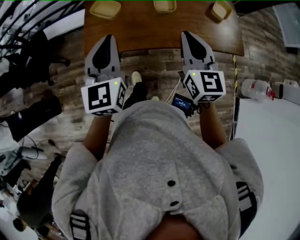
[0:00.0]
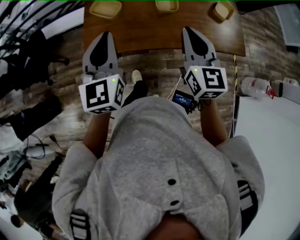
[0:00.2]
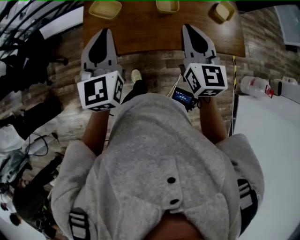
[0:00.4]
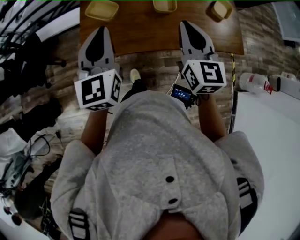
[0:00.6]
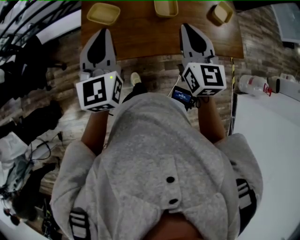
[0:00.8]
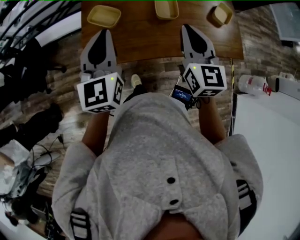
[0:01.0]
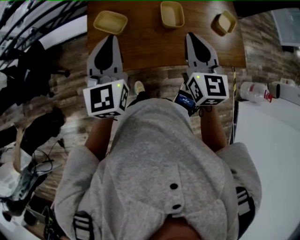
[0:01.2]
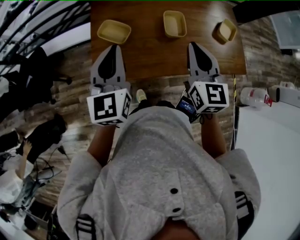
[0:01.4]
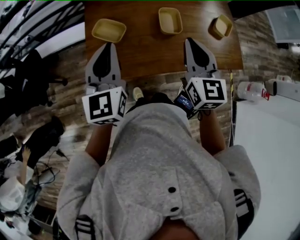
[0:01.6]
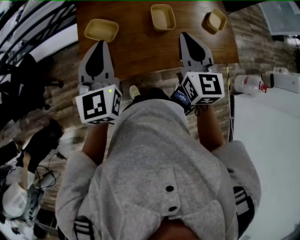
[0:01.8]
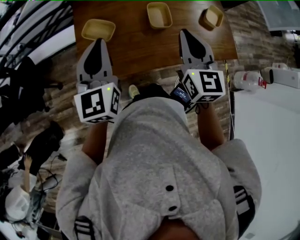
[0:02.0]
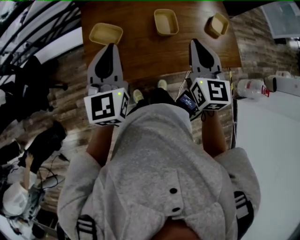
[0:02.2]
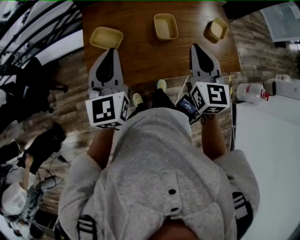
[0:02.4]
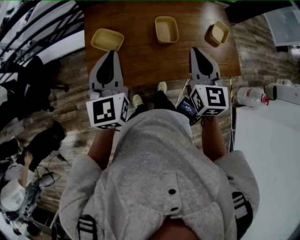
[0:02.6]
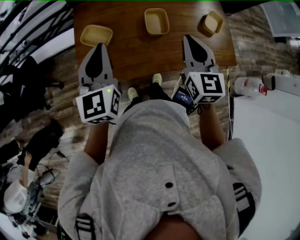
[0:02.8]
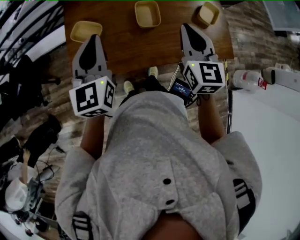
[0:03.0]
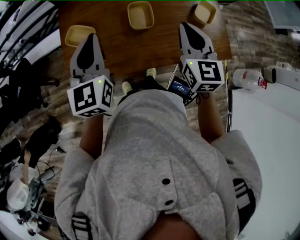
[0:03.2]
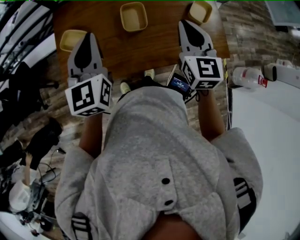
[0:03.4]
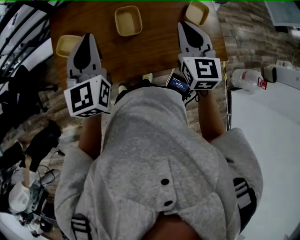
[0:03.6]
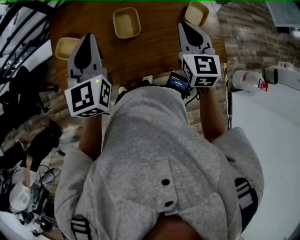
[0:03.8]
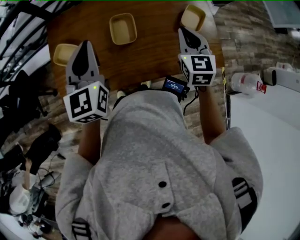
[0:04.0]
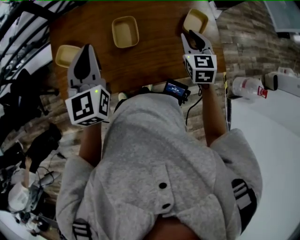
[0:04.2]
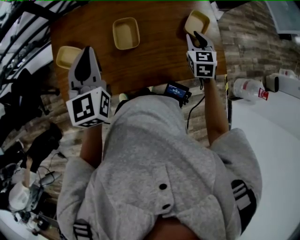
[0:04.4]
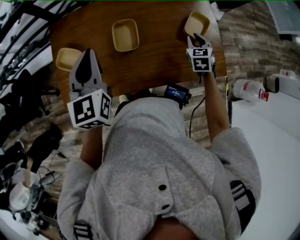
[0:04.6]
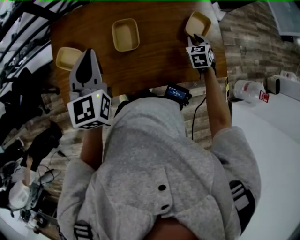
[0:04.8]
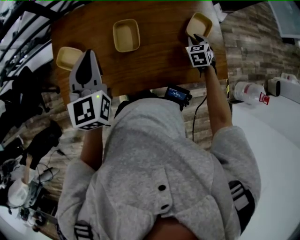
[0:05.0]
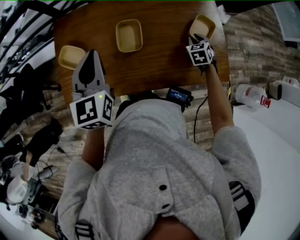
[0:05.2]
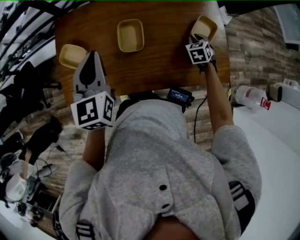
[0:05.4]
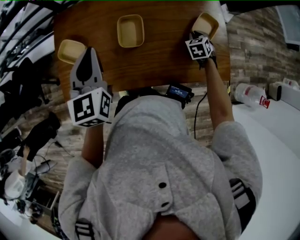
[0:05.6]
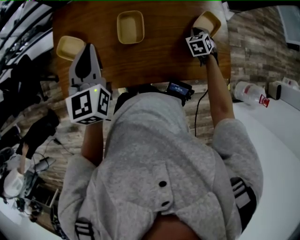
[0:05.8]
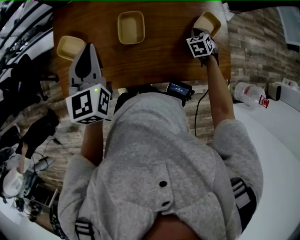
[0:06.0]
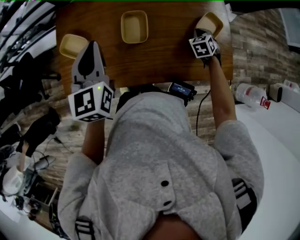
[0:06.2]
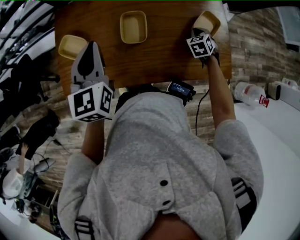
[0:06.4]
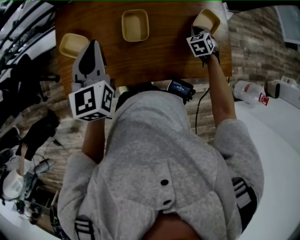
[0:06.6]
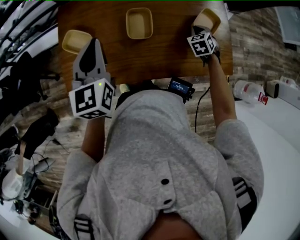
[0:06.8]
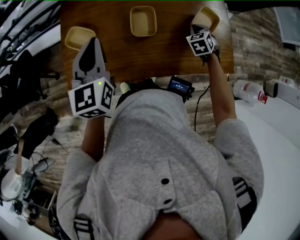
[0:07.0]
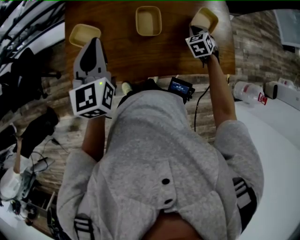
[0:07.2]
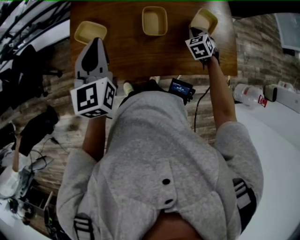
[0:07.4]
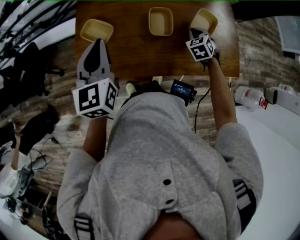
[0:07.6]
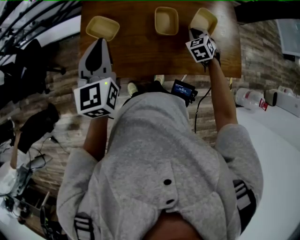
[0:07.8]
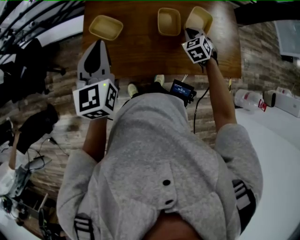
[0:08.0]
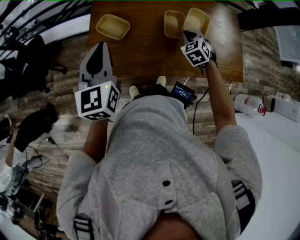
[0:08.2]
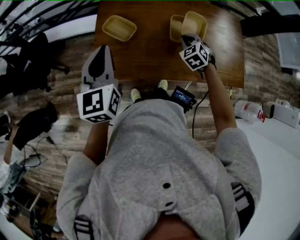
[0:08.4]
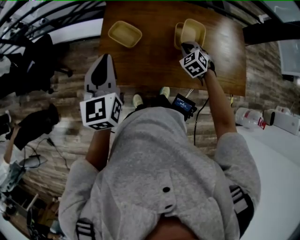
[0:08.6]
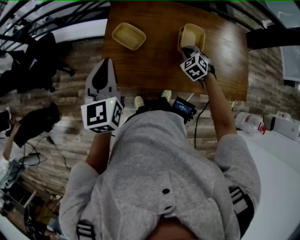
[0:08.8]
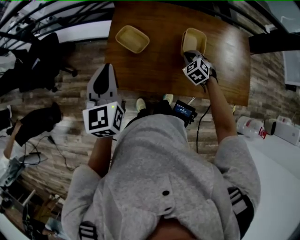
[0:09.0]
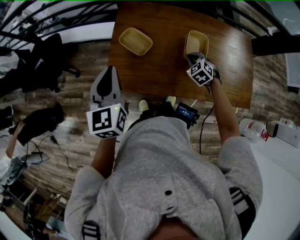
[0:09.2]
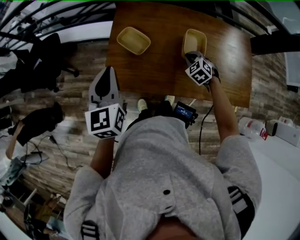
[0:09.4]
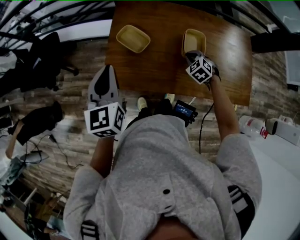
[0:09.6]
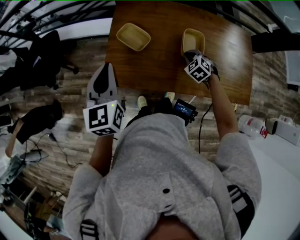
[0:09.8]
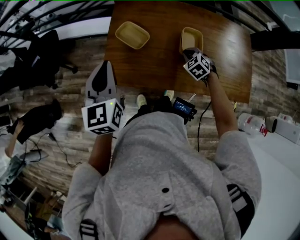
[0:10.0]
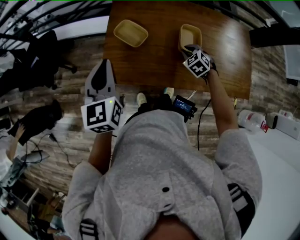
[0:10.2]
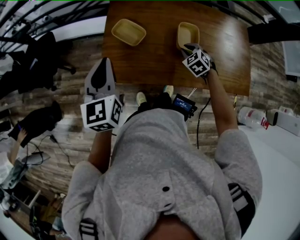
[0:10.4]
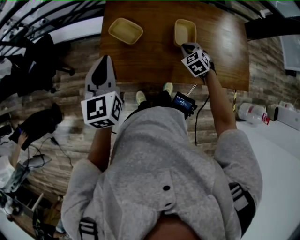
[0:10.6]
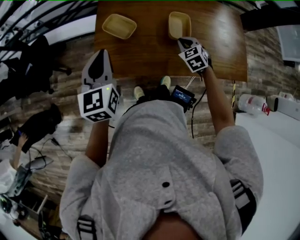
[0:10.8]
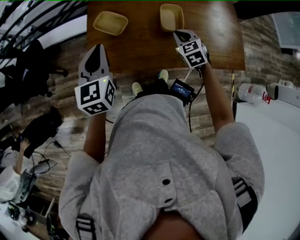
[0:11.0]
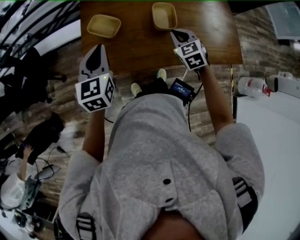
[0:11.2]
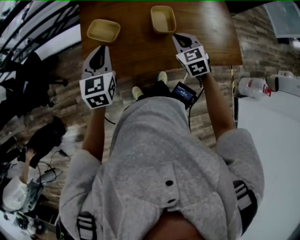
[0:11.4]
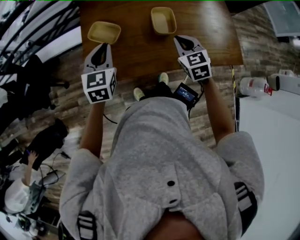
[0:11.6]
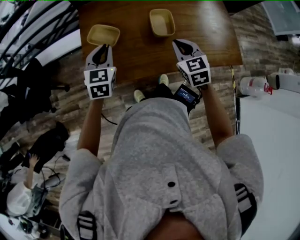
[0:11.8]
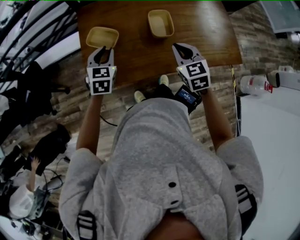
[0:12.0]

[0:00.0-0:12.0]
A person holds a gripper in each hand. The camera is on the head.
0:00.0 to 0:01.6: The grippers both shift forward and to the left by approximately 15 cm.
0:01.6 to 0:03.0: Both grippers travel together to the right, some 10 cm.
0:03.0 to 0:04.4: The right gripper is displaced to the right, downward and forward by roughly 30 cm, turns by approximately 20 degrees, and opens; the left gripper goes roughly 15 cm to the right and forward.
0:04.4 to 0:06.0: The right gripper shifts roughly 15 cm downward and forward, and rotates some 30 degrees.
0:06.0 to 0:07.6: The left gripper is displaced to the left and backward by some 15 cm; the right gripper heads to the left and upward, covering some 15 cm.
0:07.6 to 0:09.0: The grippers both shift to the left by roughly 20 cm. The right gripper swivels roughly 20 degrees.
0:09.0 to 0:10.4: The grippers stay close to where they were, moving slightly.
0:10.4 to 0:12.0: The left gripper is displaced downward, forward and to the right by some 20 cm, and turns by about 40 degrees; the right gripper is displaced upward and backward by about 15 cm, and swivels about 40 degrees.

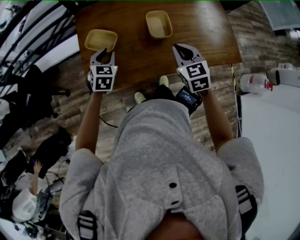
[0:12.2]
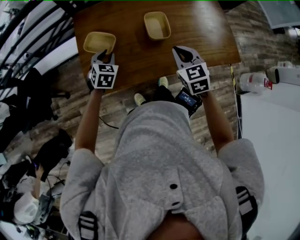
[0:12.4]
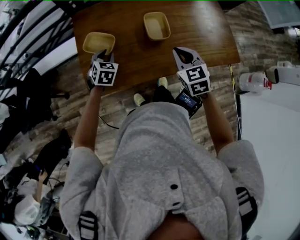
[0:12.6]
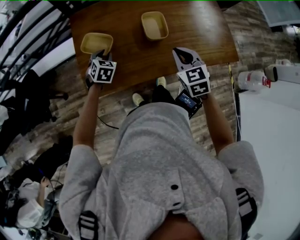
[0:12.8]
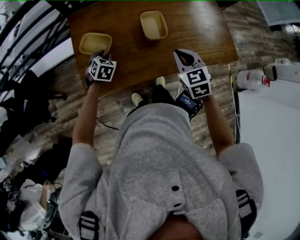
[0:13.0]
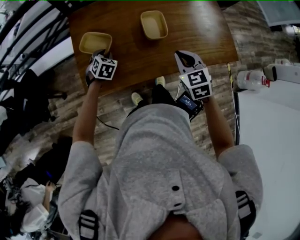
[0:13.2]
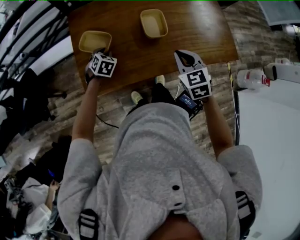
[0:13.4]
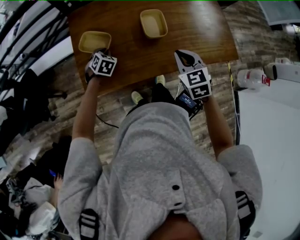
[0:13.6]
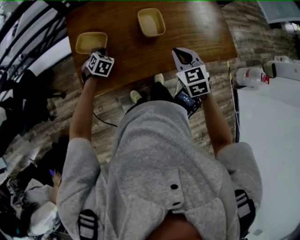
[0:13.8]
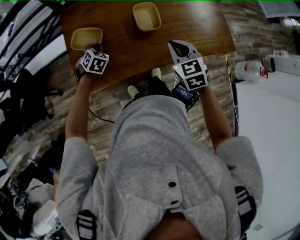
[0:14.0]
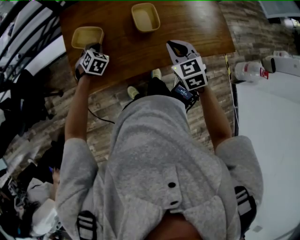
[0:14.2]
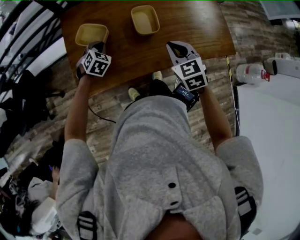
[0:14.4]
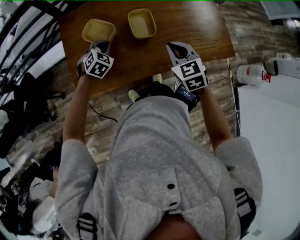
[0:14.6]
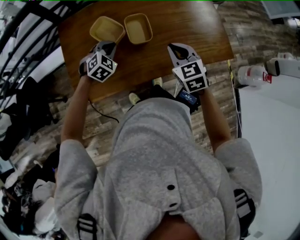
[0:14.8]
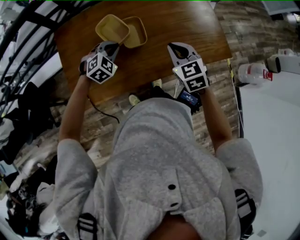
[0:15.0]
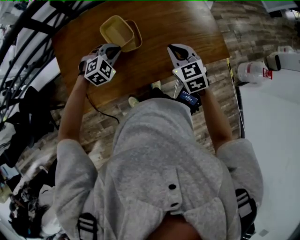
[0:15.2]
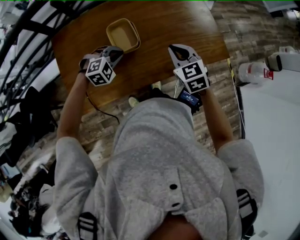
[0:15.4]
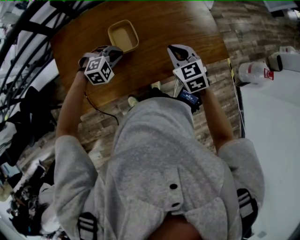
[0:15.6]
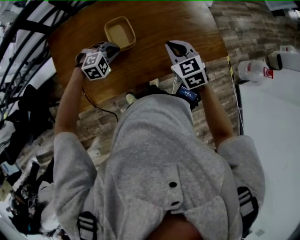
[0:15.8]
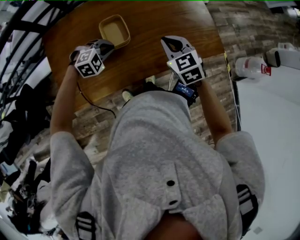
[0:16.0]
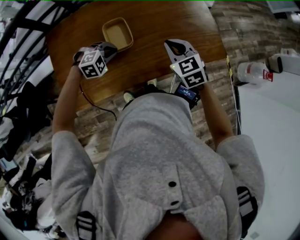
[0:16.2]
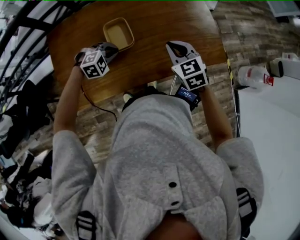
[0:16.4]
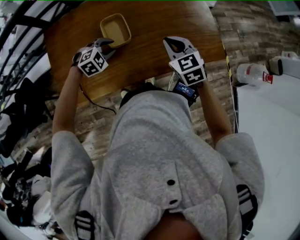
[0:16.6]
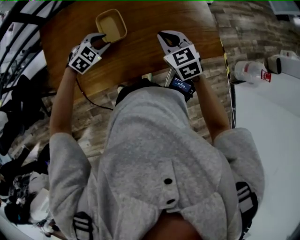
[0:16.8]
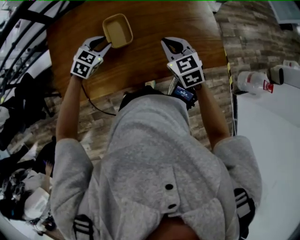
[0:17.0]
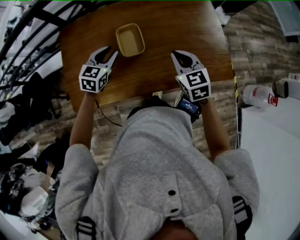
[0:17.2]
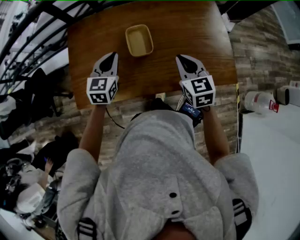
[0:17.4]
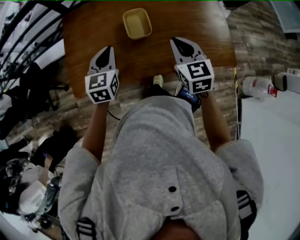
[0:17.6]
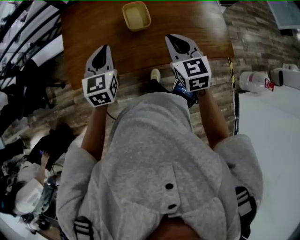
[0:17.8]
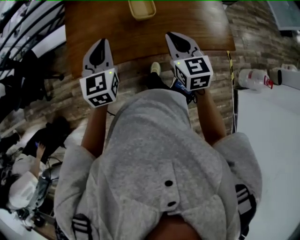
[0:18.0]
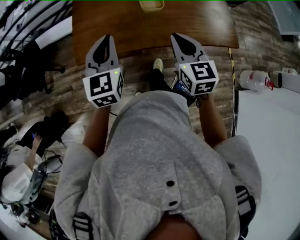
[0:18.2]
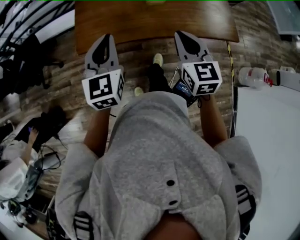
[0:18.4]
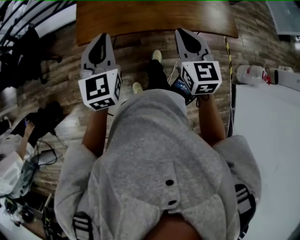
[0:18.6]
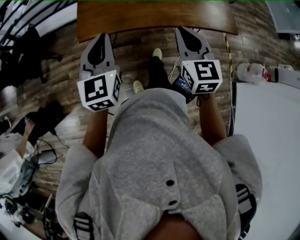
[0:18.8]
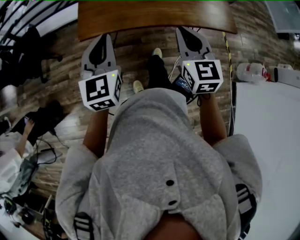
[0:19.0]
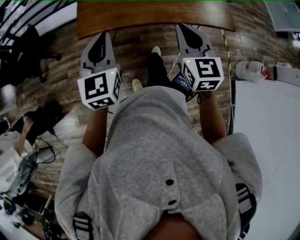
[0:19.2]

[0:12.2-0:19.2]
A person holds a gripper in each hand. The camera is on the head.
0:12.2 to 0:13.6: The left gripper travels downward by some 10 cm.
0:13.6 to 0:15.0: The right gripper heads to the right and forward, covering approximately 10 cm; the left gripper moves to the right and upward, some 20 cm, and swivels approximately 40 degrees.
0:15.0 to 0:16.4: The right gripper goes roughly 10 cm to the right and forward, while the left gripper travels to the right by some 5 cm, and turns by about 20 degrees.
0:16.4 to 0:17.8: The left gripper is displaced upward by roughly 15 cm, tips its fingers upward by about 40 degrees, and opens, then closes once more; the right gripper moves approximately 15 cm.
0:17.8 to 0:19.2: Both grippers move backward and to the left, some 25 cm.

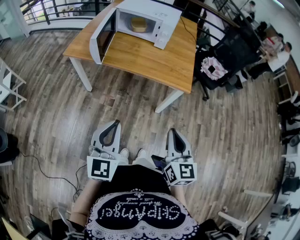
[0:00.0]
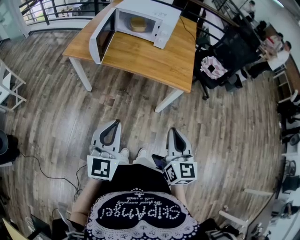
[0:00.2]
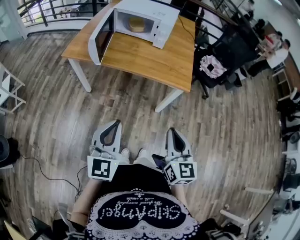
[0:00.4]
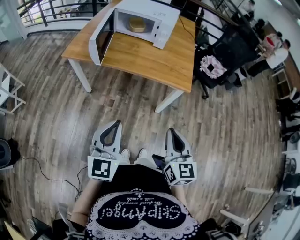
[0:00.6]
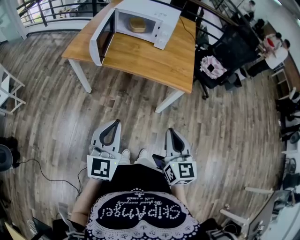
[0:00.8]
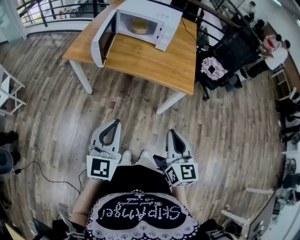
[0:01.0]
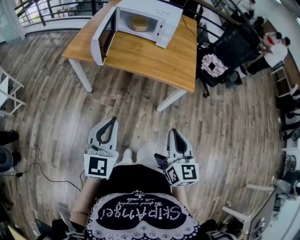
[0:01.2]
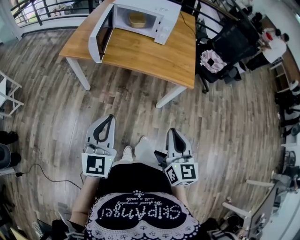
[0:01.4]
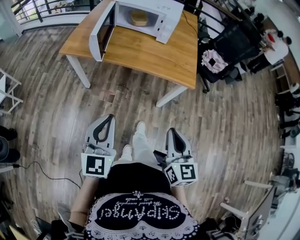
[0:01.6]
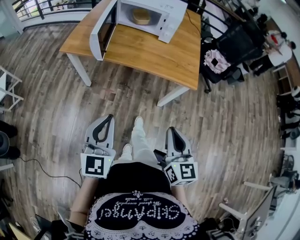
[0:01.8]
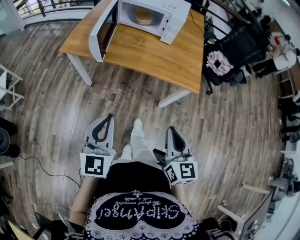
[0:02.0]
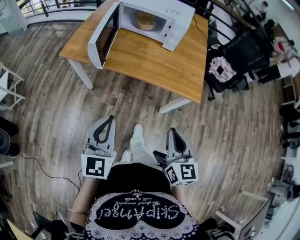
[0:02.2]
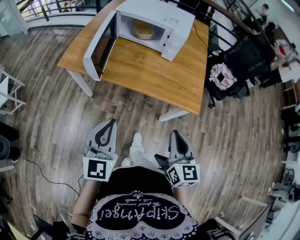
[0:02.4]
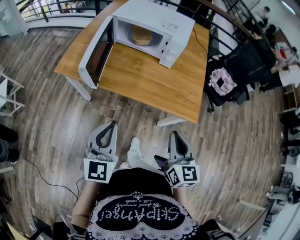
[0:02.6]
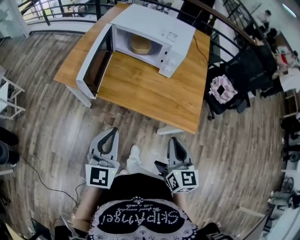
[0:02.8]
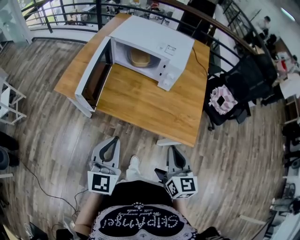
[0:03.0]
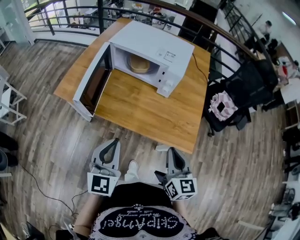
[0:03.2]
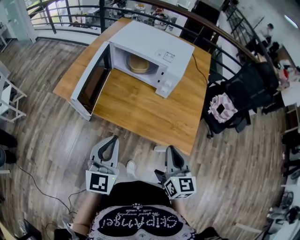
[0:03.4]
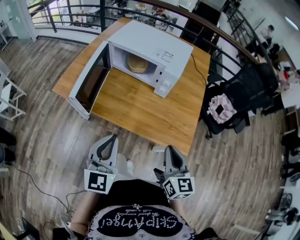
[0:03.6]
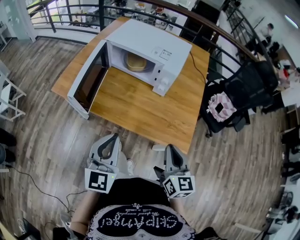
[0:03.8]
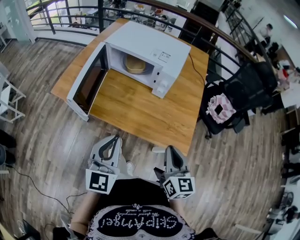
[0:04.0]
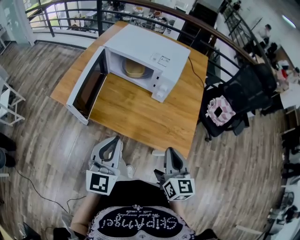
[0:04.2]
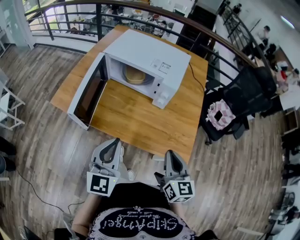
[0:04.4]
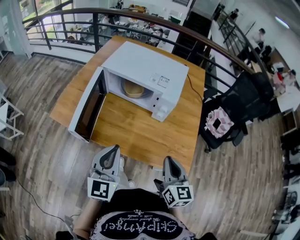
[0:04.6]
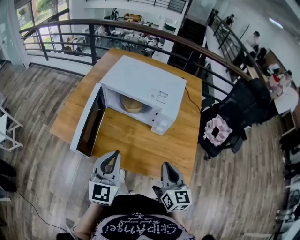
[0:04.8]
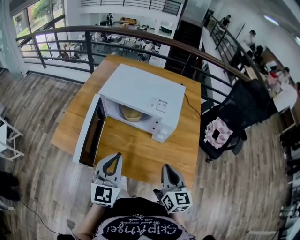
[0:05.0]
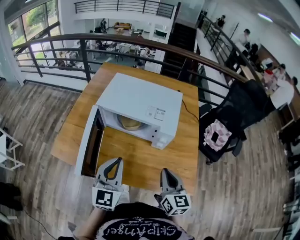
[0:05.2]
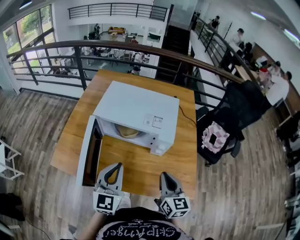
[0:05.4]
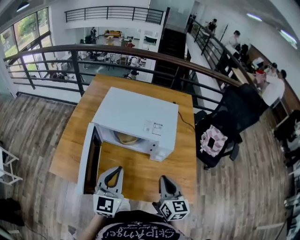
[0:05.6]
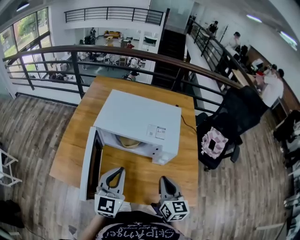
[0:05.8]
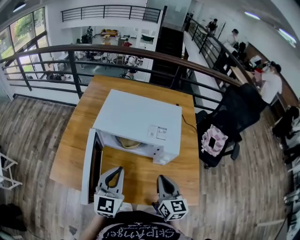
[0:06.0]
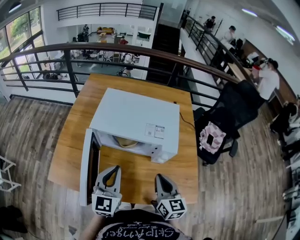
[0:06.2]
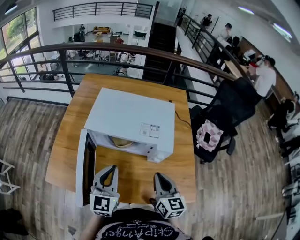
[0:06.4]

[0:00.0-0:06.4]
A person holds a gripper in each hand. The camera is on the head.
0:00.0 to 0:01.6: The left gripper goes some 5 cm to the left.
0:01.6 to 0:03.2: Both grippers move forward, some 25 cm.
0:03.2 to 0:04.8: The two grippers go roughly 10 cm forward.
0:04.8 to 0:06.4: The right gripper travels forward and to the left by some 15 cm. The left gripper shifts about 15 cm forward.
